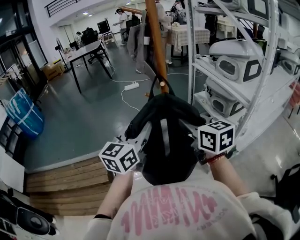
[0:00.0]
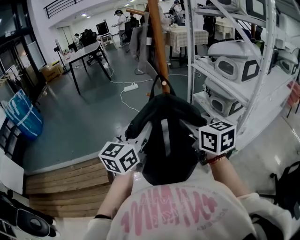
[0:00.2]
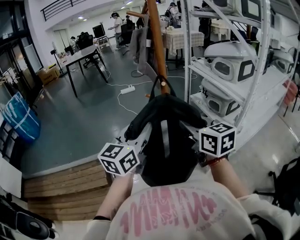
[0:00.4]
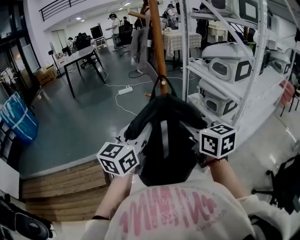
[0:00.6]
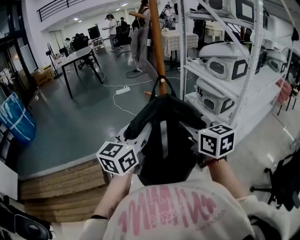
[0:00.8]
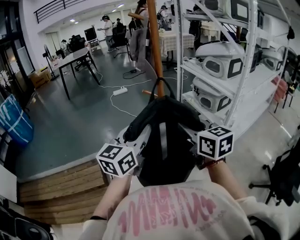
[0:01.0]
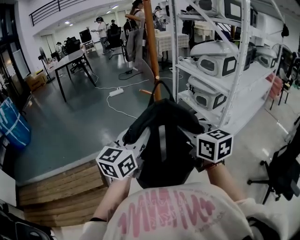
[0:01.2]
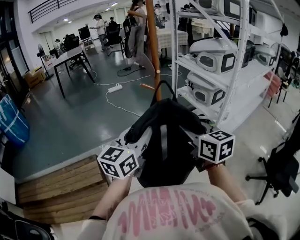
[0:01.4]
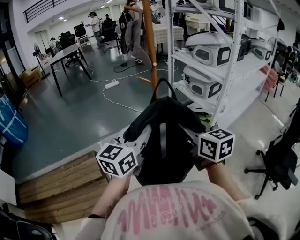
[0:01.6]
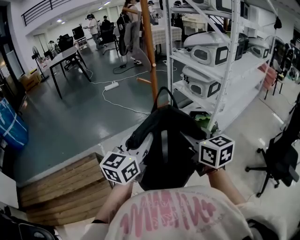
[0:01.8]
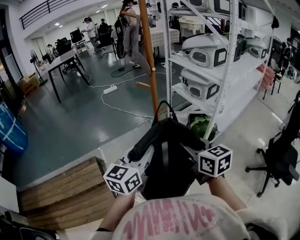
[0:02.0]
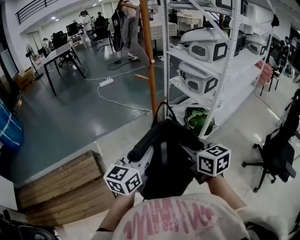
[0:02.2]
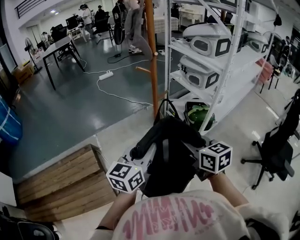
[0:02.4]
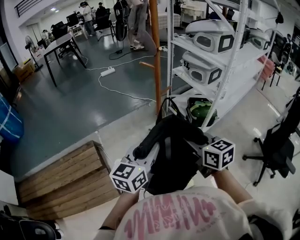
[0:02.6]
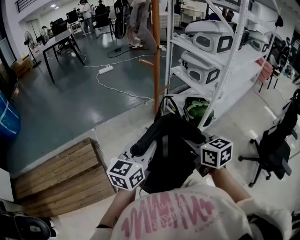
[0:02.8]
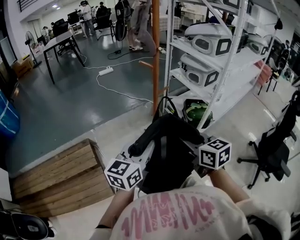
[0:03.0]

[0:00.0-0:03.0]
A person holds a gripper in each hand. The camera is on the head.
0:00.0 to 0:01.6: The grippers both shift backward by approximately 15 cm.
0:01.6 to 0:03.0: The grippers both shift downward and backward by some 10 cm.

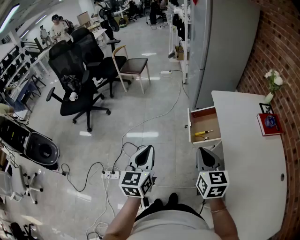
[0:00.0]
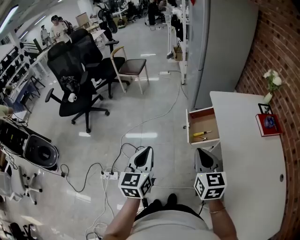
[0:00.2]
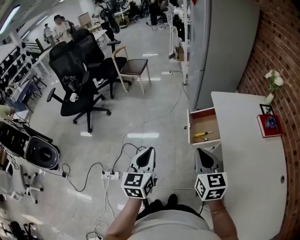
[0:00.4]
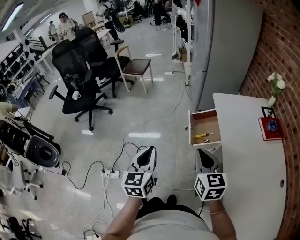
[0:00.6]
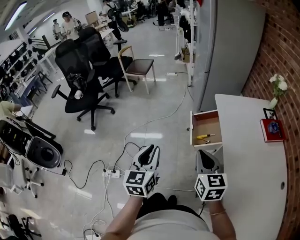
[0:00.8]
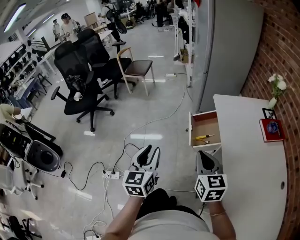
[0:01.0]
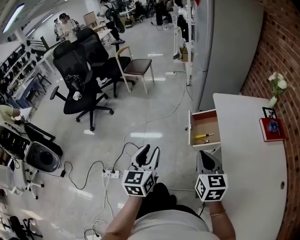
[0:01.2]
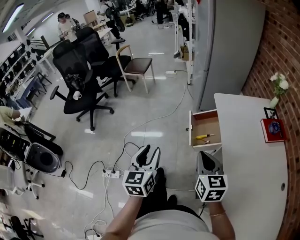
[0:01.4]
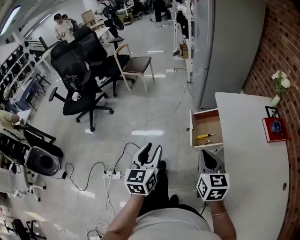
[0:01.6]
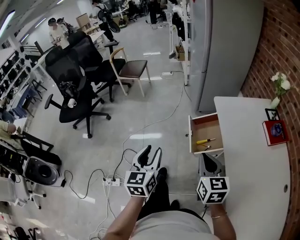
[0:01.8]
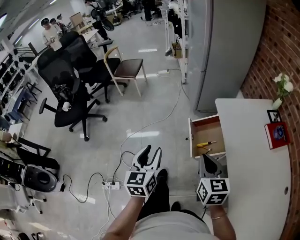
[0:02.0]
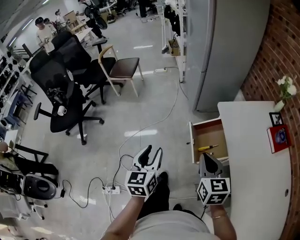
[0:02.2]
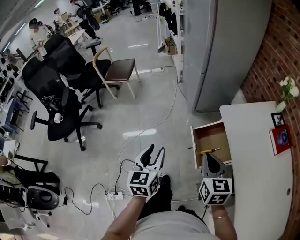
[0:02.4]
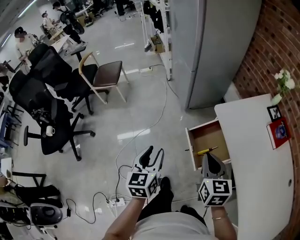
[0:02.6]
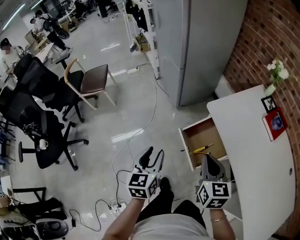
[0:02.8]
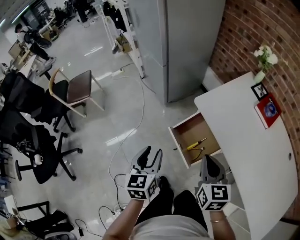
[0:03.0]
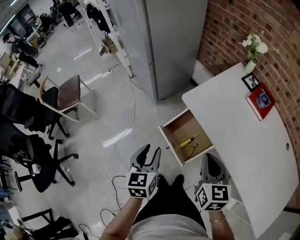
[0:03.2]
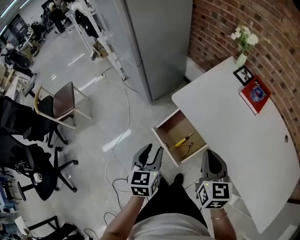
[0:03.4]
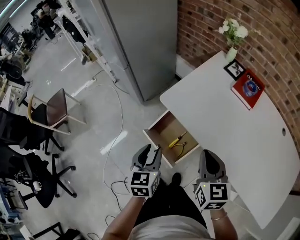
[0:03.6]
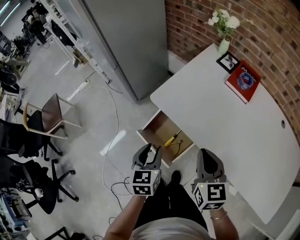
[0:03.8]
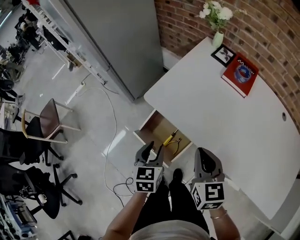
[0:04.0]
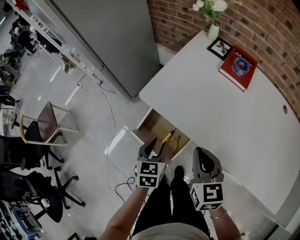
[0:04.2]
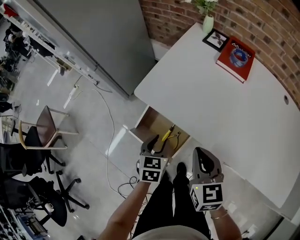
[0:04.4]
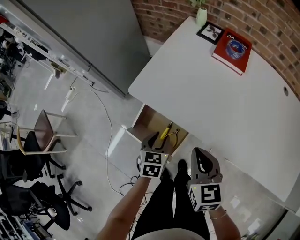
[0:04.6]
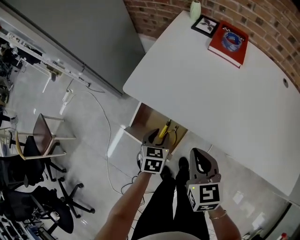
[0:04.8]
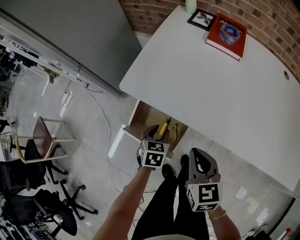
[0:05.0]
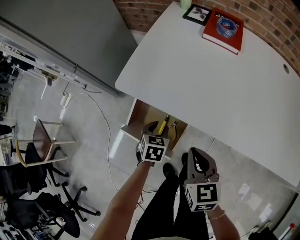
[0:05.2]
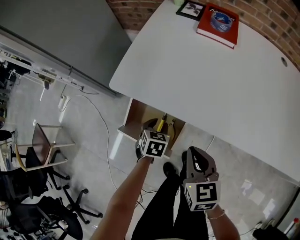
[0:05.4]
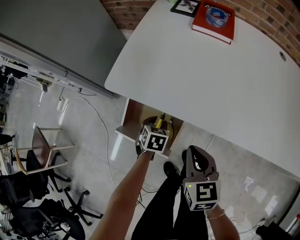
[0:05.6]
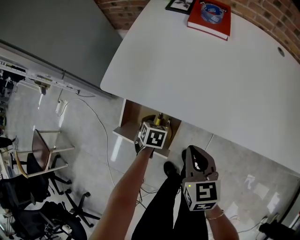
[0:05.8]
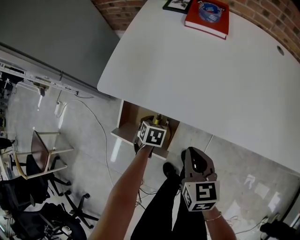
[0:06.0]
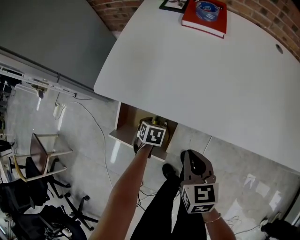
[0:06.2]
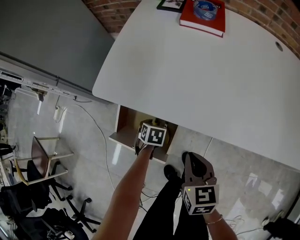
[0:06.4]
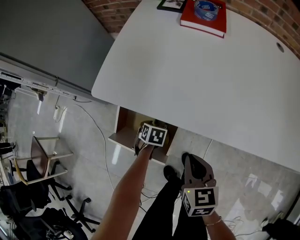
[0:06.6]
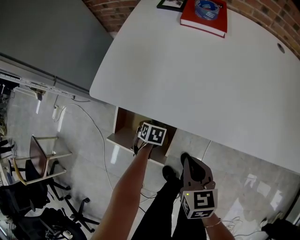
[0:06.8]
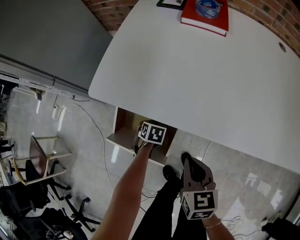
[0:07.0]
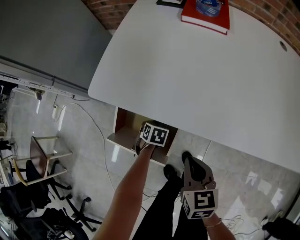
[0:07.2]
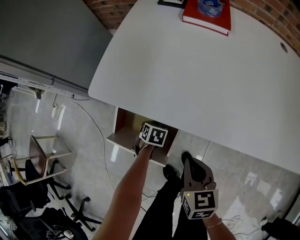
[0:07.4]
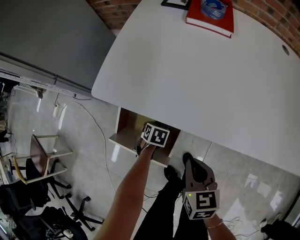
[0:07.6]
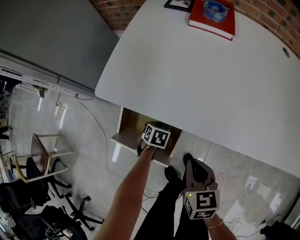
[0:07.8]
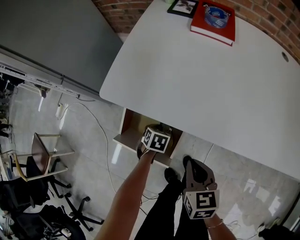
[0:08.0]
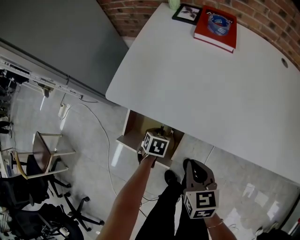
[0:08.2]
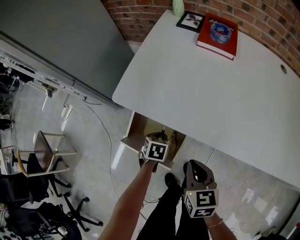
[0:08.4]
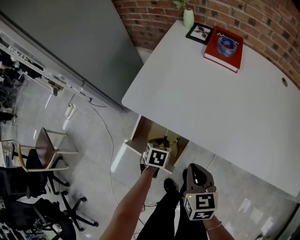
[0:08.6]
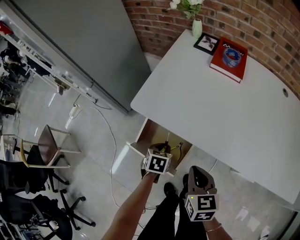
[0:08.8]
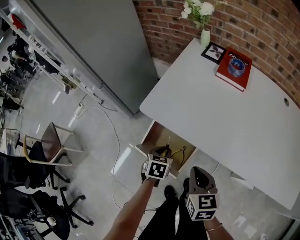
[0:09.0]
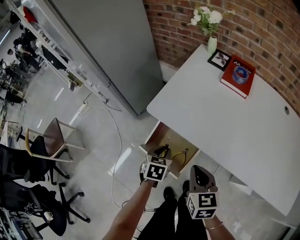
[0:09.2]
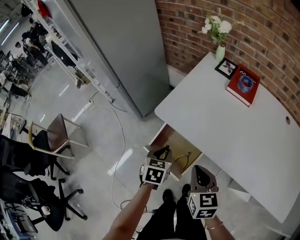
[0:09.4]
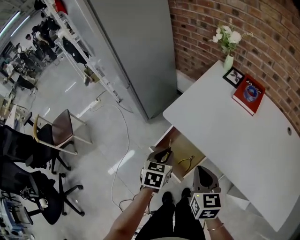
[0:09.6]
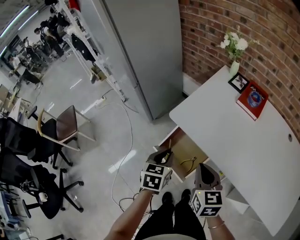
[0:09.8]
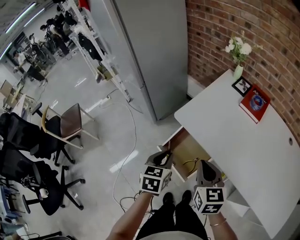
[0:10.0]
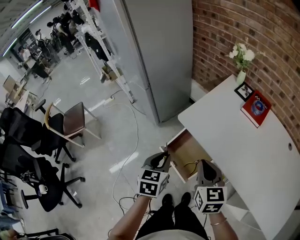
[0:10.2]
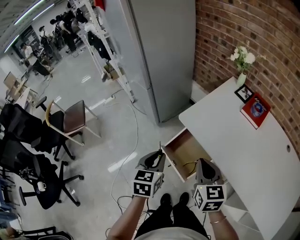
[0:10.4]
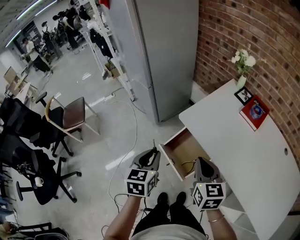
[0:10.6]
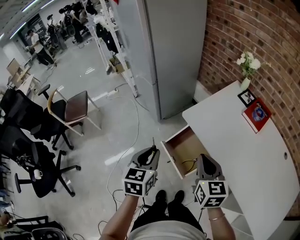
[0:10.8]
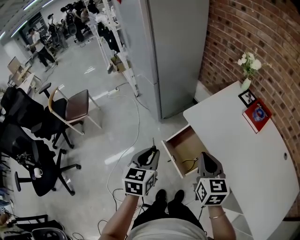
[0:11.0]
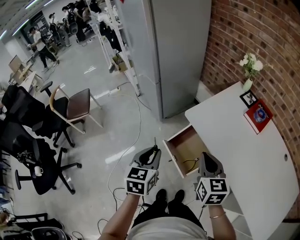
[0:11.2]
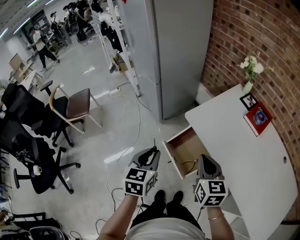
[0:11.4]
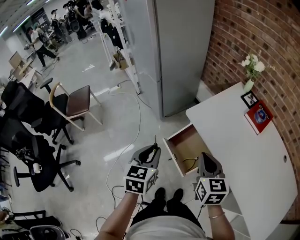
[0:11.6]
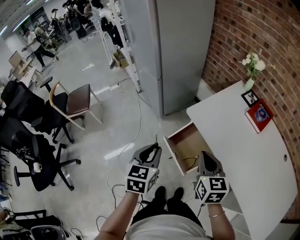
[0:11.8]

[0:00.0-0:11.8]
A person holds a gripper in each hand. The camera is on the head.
0:00.0 to 0:01.4: The left gripper opens up.
0:01.4 to 0:03.0: The left gripper moves roughly 35 cm, and rotates about 30 degrees, while the right gripper moves approximately 25 cm, and turns by approximately 30 degrees.
0:03.0 to 0:04.4: The right gripper travels to the right and downward by about 15 cm. Meanwhile the left gripper is displaced to the right, downward and forward by about 30 cm, and turns by some 40 degrees.
0:04.4 to 0:06.0: The right gripper is displaced downward by roughly 15 cm. Meanwhile the left gripper goes approximately 20 cm downward, and swivels about 30 degrees.
0:06.0 to 0:07.4: The left gripper heads downward, covering roughly 5 cm.
0:07.4 to 0:08.8: The right gripper travels upward by roughly 10 cm; the left gripper travels upward by roughly 15 cm.
0:08.8 to 0:10.4: The right gripper moves upward and to the left, roughly 20 cm, and swivels approximately 20 degrees. Meanwhile the left gripper travels upward and to the left by roughly 30 cm, and turns by some 40 degrees.
0:10.4 to 0:11.8: The left gripper changes place by about 5 cm.

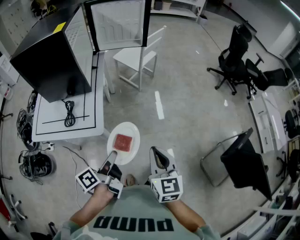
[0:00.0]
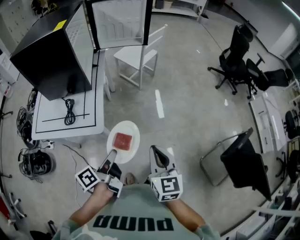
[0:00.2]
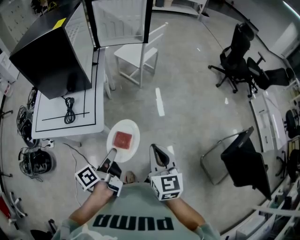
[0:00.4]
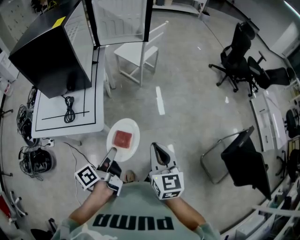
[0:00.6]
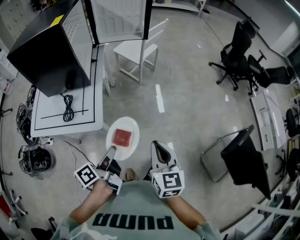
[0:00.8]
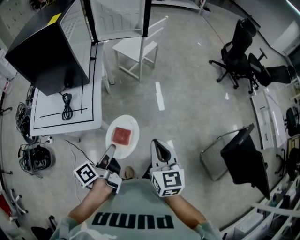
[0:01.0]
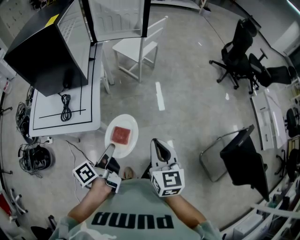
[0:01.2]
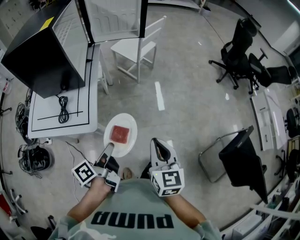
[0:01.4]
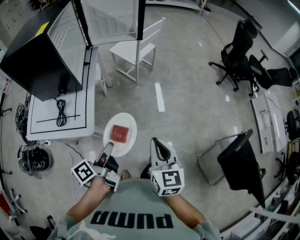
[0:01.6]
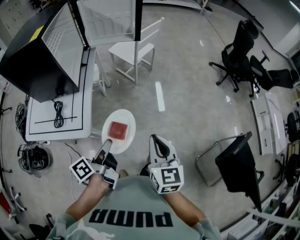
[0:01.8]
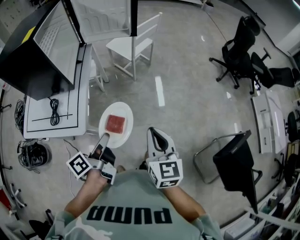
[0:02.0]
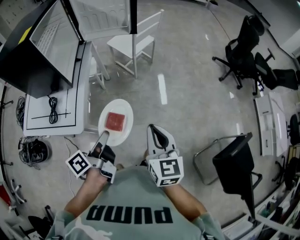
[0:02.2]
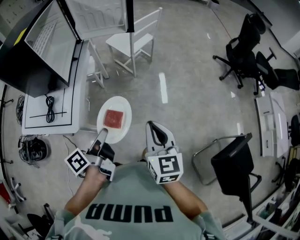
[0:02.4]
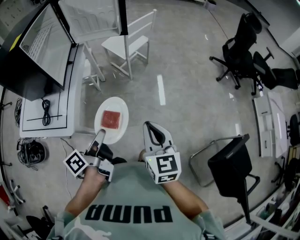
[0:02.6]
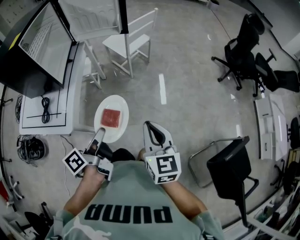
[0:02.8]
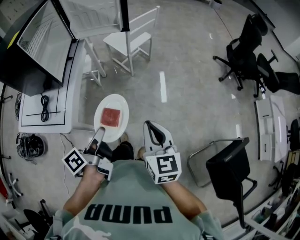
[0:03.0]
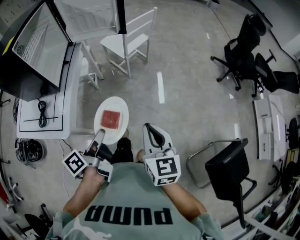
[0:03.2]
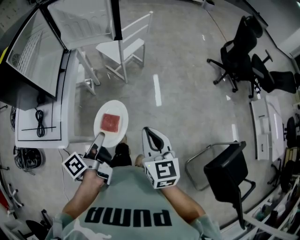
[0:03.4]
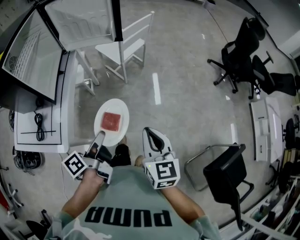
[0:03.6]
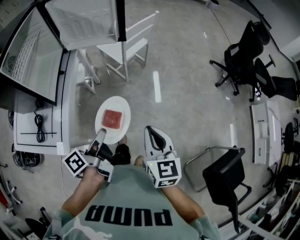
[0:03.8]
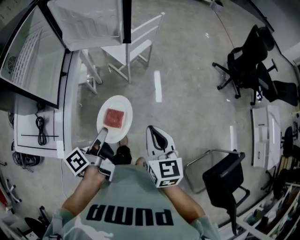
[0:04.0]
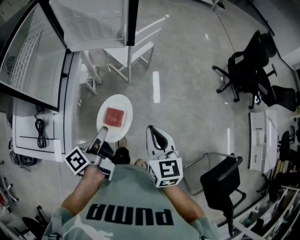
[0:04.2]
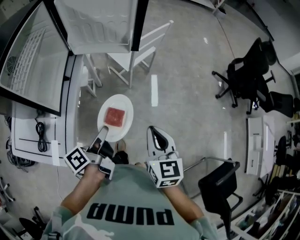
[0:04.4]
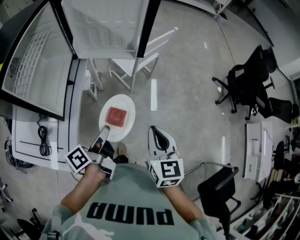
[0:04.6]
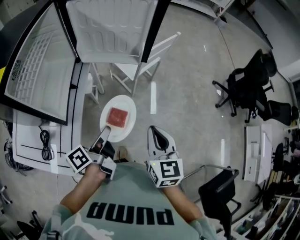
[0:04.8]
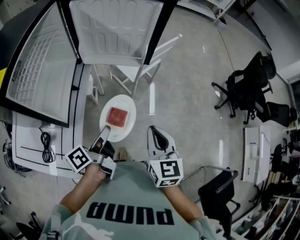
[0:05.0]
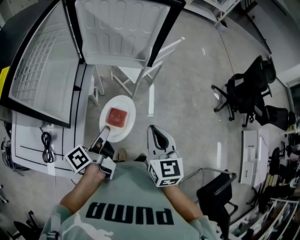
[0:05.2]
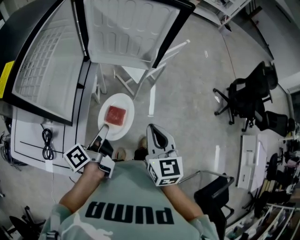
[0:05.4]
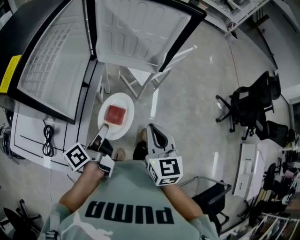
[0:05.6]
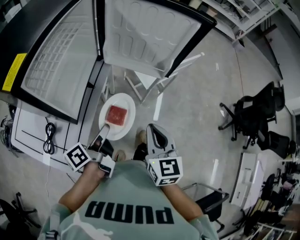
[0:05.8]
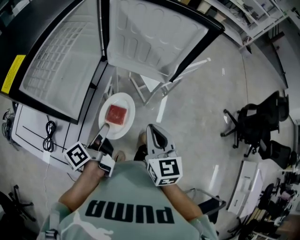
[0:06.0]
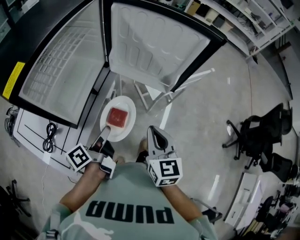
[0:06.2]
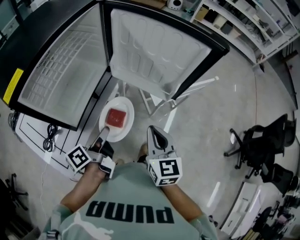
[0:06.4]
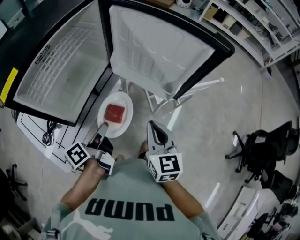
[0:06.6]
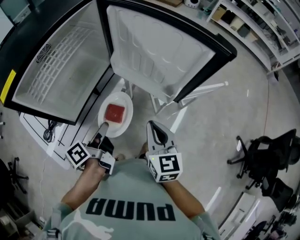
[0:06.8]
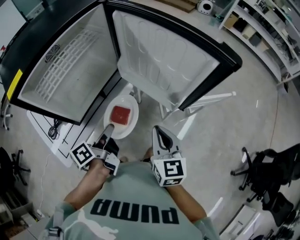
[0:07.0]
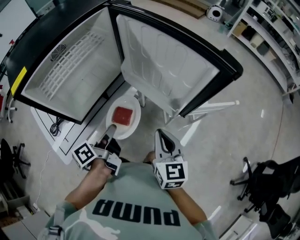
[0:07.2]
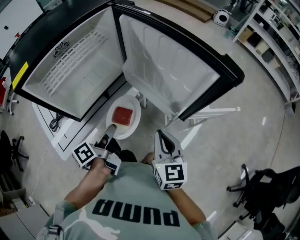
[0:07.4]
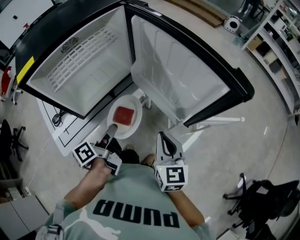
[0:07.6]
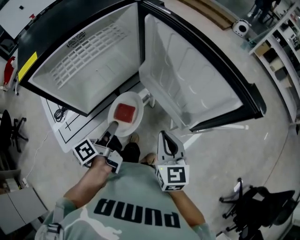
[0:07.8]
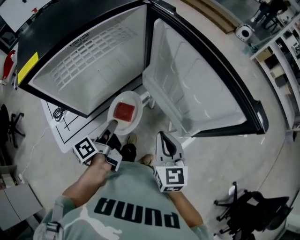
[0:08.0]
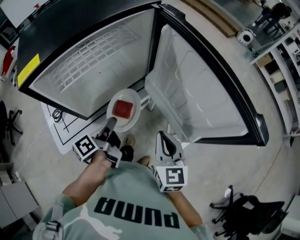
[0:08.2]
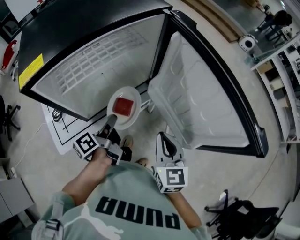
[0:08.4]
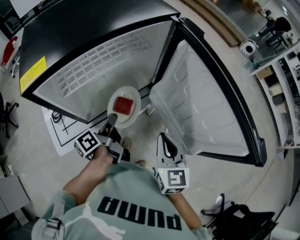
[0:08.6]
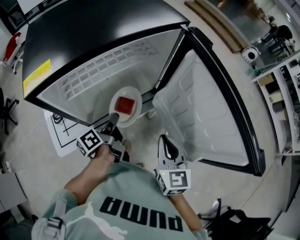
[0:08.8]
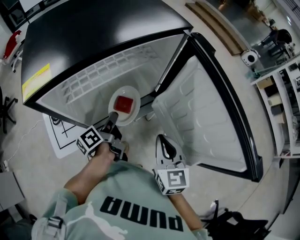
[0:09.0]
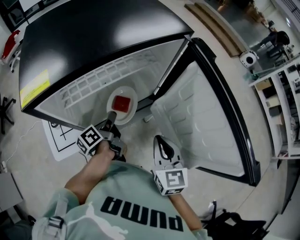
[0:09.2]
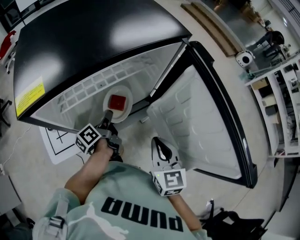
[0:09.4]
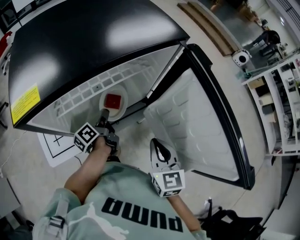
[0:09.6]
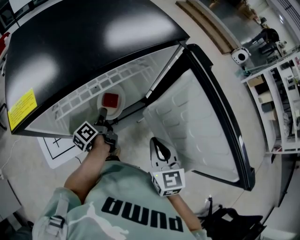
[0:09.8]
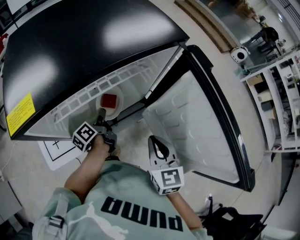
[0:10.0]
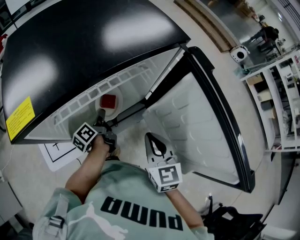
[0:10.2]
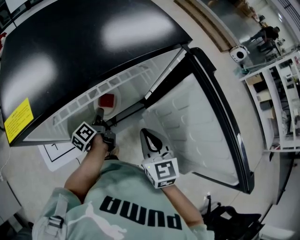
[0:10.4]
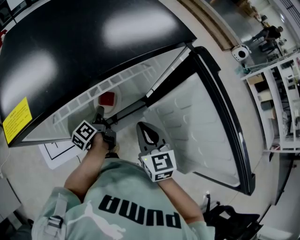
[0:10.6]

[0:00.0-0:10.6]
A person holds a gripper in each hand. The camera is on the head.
0:00.0 to 0:01.6: Both grippers travel together forward, roughly 5 cm.
0:01.6 to 0:03.0: The two grippers go approximately 15 cm to the right and forward.
0:03.0 to 0:04.6: Both grippers travel together forward, about 25 cm.
0:04.6 to 0:06.0: The right gripper shifts about 15 cm forward and to the left; the left gripper is displaced to the left and forward by about 10 cm.
0:06.0 to 0:07.6: The right gripper changes place by approximately 15 cm, and rotates some 30 degrees; the left gripper changes place by about 10 cm, and rotates about 30 degrees.
0:07.6 to 0:09.0: The two grippers go roughly 15 cm forward and to the left.
0:09.0 to 0:10.6: The right gripper heads forward, covering roughly 10 cm. Meanwhile the left gripper is displaced forward and downward by approximately 10 cm.
